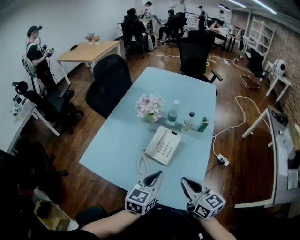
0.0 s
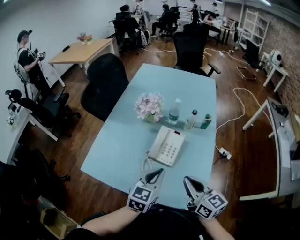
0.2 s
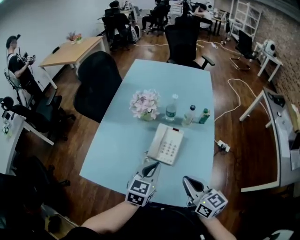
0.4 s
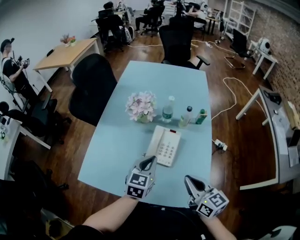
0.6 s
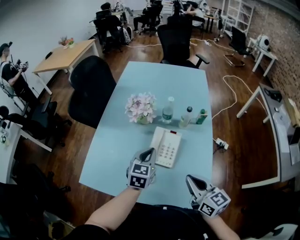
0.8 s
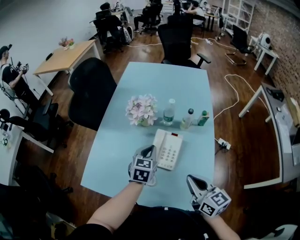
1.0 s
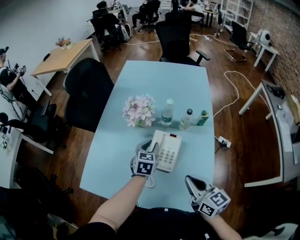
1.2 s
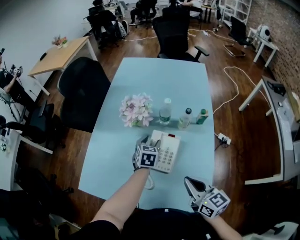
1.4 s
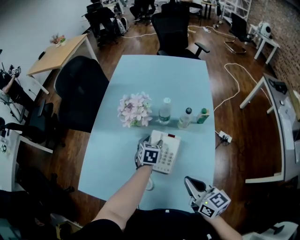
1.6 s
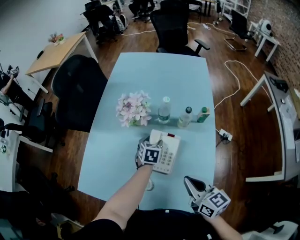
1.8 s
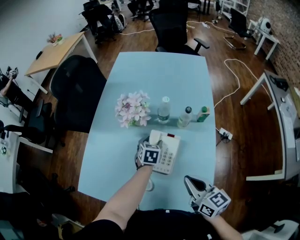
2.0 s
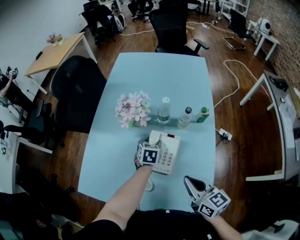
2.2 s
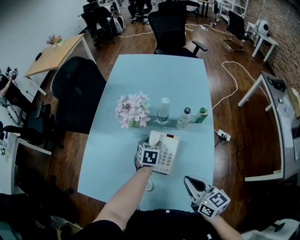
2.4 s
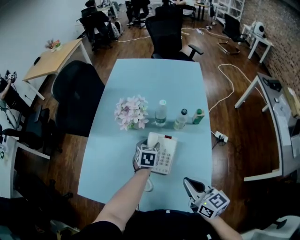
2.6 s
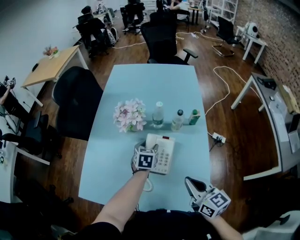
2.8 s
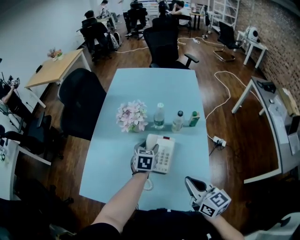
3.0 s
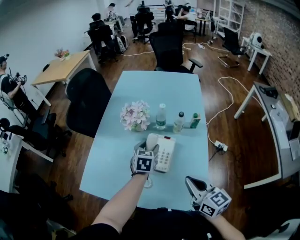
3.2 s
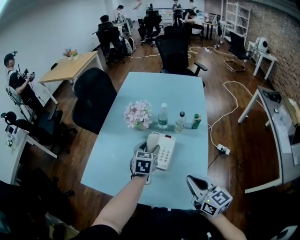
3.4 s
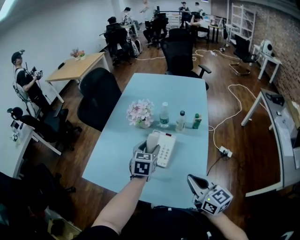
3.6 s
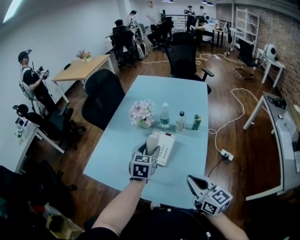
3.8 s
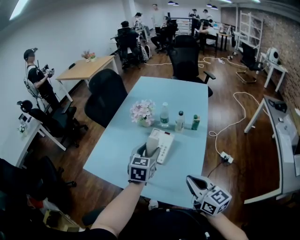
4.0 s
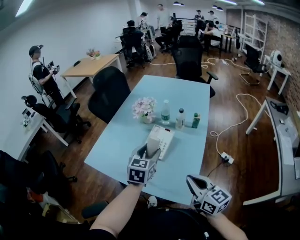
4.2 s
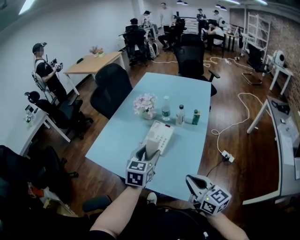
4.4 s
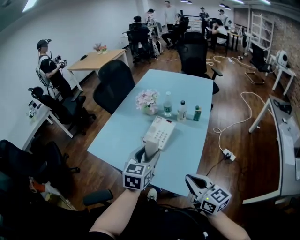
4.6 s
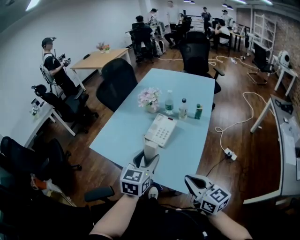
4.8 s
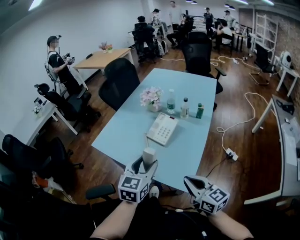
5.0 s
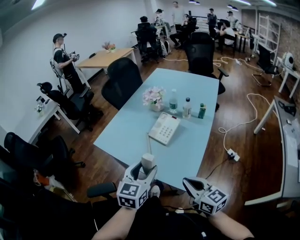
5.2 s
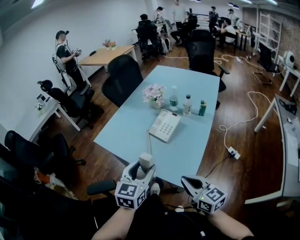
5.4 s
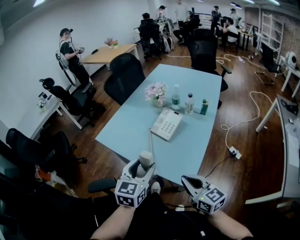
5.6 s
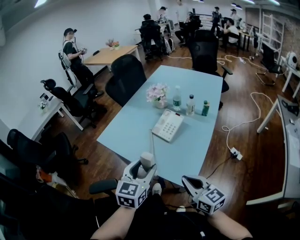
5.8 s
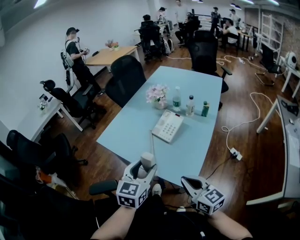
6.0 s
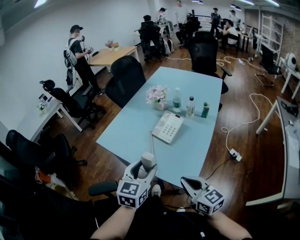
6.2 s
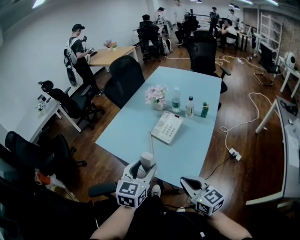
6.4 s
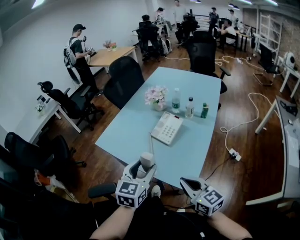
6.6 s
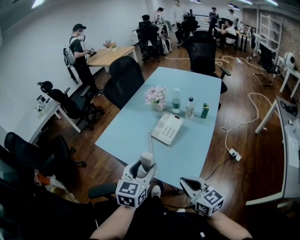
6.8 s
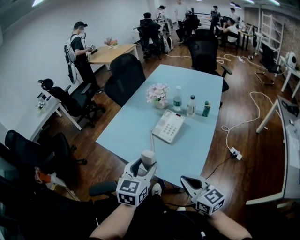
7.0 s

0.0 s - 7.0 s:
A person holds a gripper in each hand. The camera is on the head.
0.0 s - 1.4 s: The left gripper is displaced forward and downward by approximately 30 cm, swivels approximately 20 degrees, and opens its fingers; the right gripper shifts some 10 cm forward.
1.4 s - 2.8 s: The grippers make only small movements.
2.8 s - 4.2 s: The right gripper shifts approximately 15 cm backward and to the right; the left gripper is displaced backward and upward by about 25 cm, and swivels roughly 20 degrees.
4.2 s - 5.6 s: The left gripper shifts some 20 cm backward; the right gripper is displaced backward by approximately 10 cm.
5.6 s - 7.0 s: The grippers stay close to where they were, moving slightly.

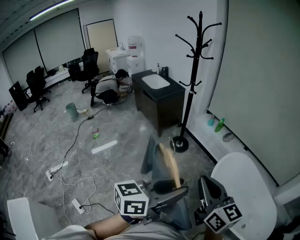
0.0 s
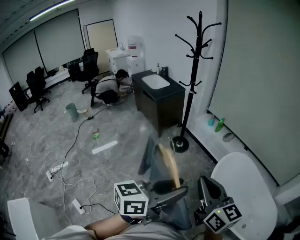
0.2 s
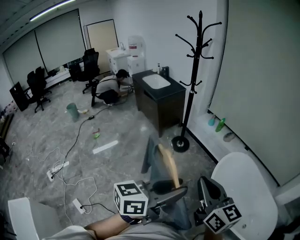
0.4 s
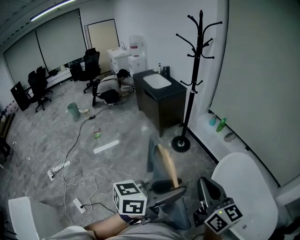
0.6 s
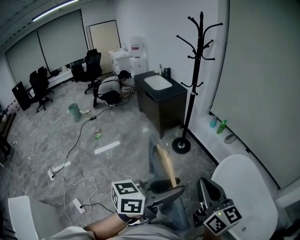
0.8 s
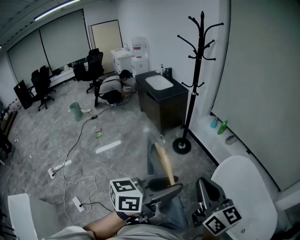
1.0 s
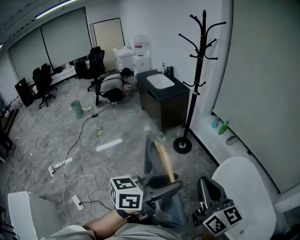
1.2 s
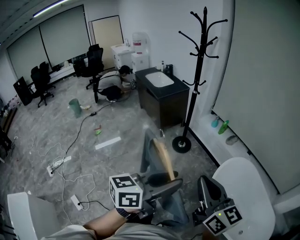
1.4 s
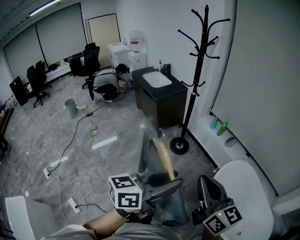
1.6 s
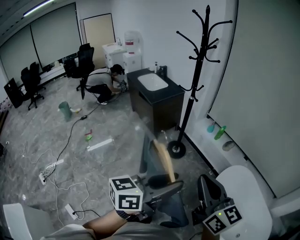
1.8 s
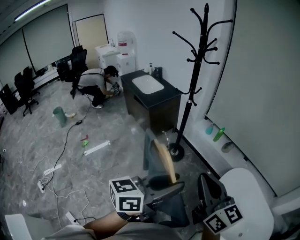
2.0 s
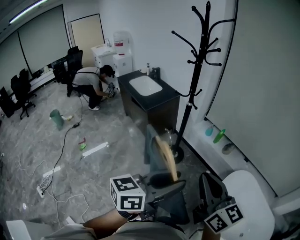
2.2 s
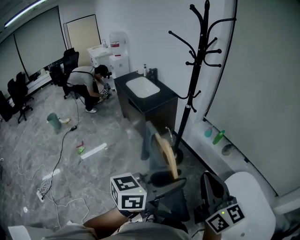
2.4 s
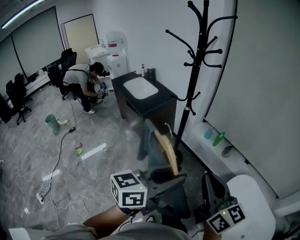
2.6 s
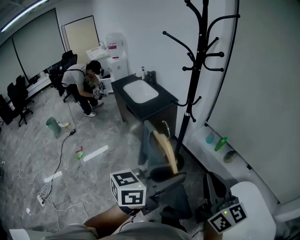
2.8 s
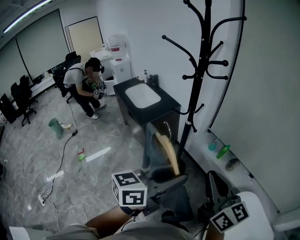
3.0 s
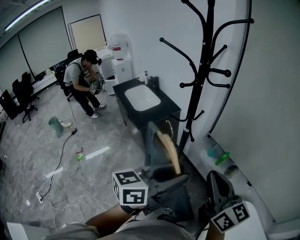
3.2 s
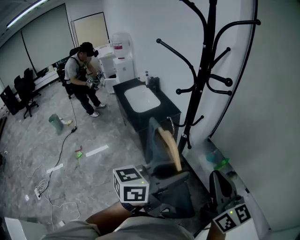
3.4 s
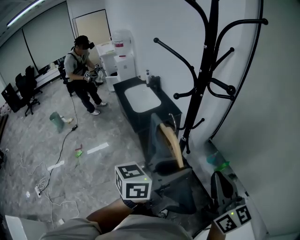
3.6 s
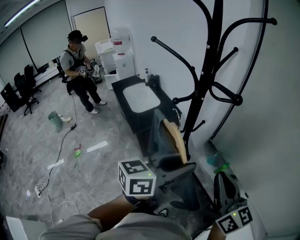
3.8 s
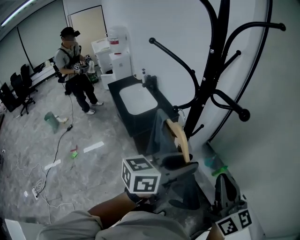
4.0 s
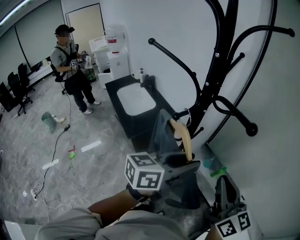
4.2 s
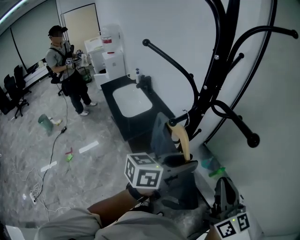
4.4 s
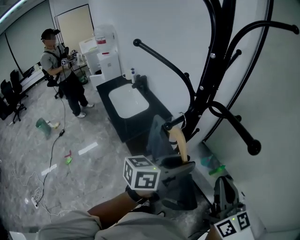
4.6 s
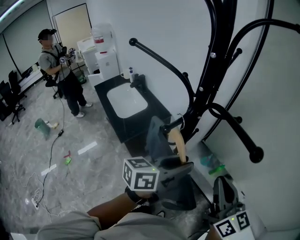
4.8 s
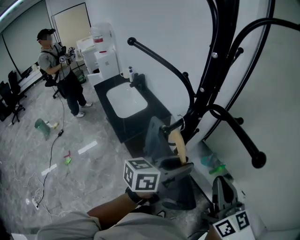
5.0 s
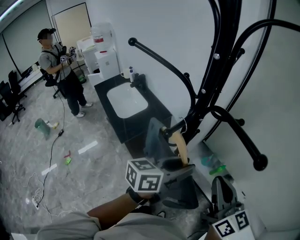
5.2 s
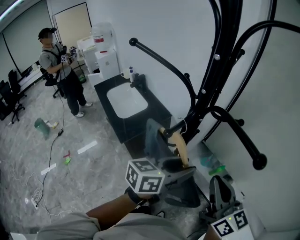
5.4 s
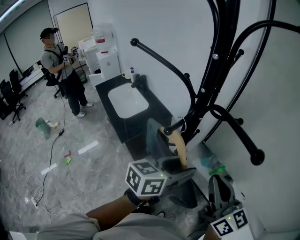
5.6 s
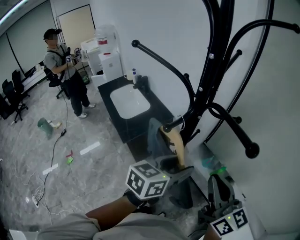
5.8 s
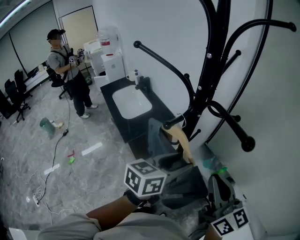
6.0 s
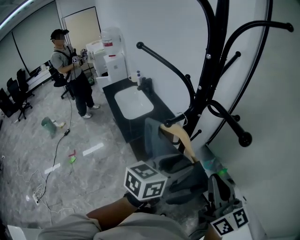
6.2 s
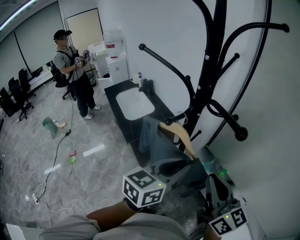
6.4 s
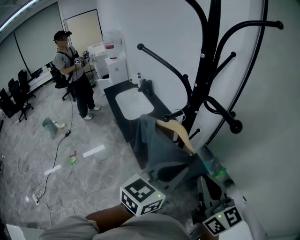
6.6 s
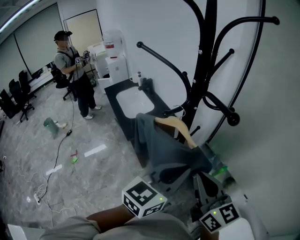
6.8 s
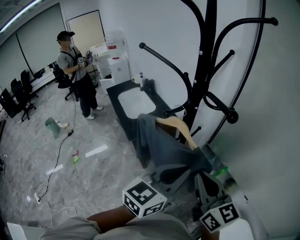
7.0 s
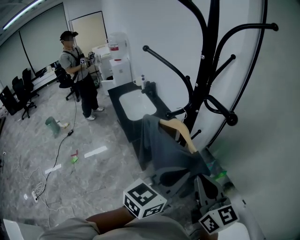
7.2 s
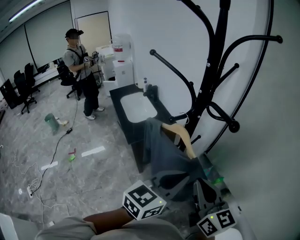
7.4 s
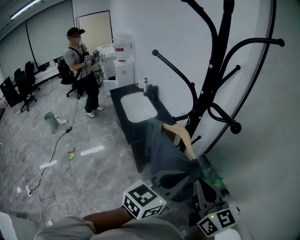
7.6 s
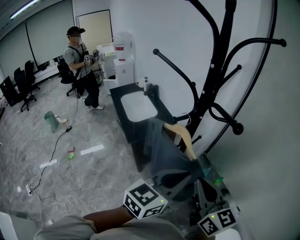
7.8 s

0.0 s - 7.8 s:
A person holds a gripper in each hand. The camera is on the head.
0.0 s - 1.6 s: Both grippers travel together forward, about 10 cm.
1.6 s - 3.2 s: The two grippers travel together, forward, roughly 50 cm.
3.2 s - 4.6 s: Both grippers travel together forward, some 25 cm.
4.6 s - 6.2 s: There are only small adjustments of the grippers.
6.2 s - 7.8 s: The left gripper travels backward by about 5 cm, and closes its fingers.

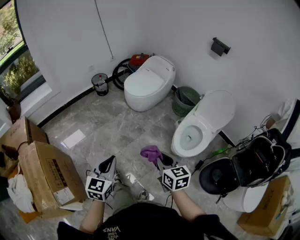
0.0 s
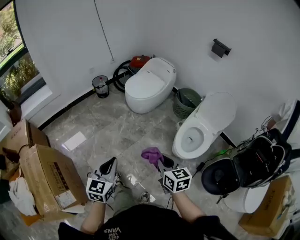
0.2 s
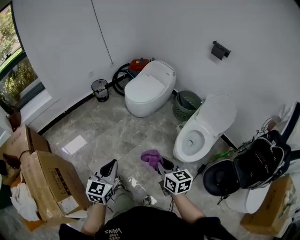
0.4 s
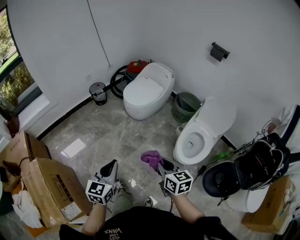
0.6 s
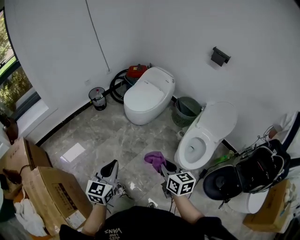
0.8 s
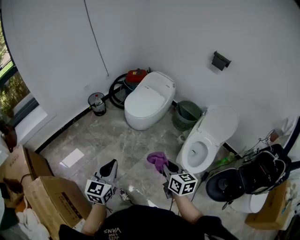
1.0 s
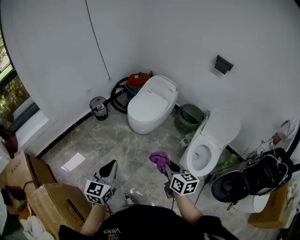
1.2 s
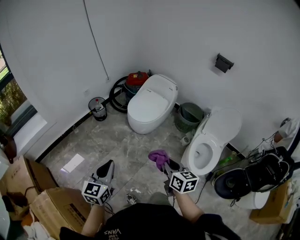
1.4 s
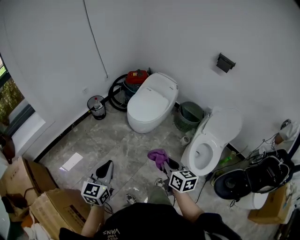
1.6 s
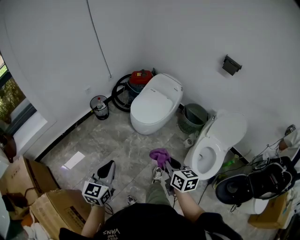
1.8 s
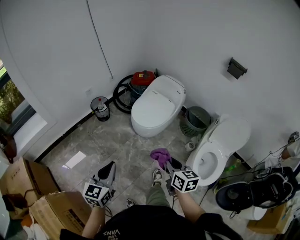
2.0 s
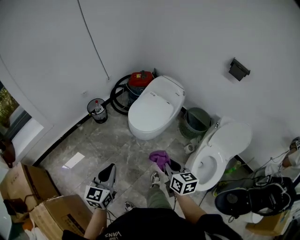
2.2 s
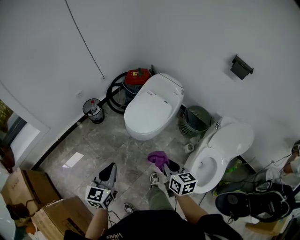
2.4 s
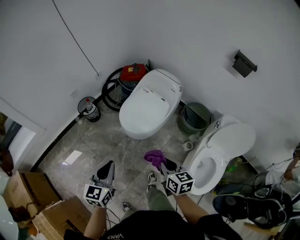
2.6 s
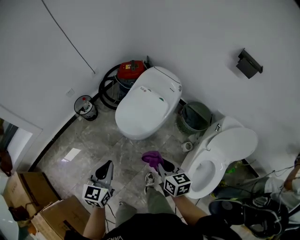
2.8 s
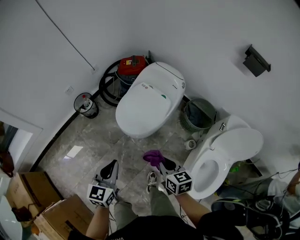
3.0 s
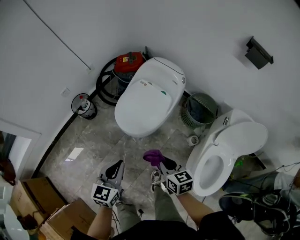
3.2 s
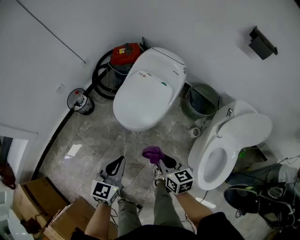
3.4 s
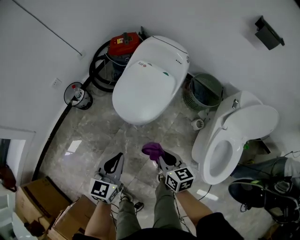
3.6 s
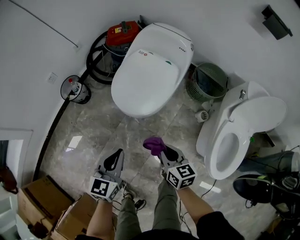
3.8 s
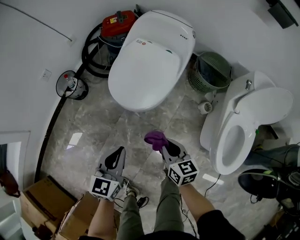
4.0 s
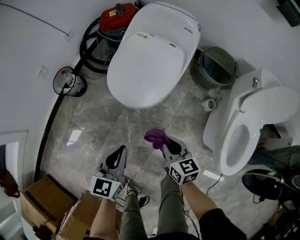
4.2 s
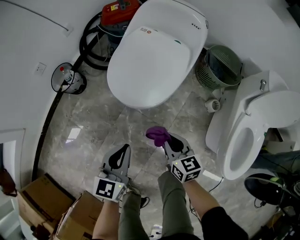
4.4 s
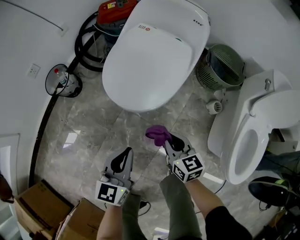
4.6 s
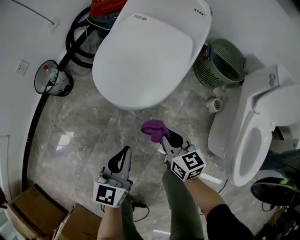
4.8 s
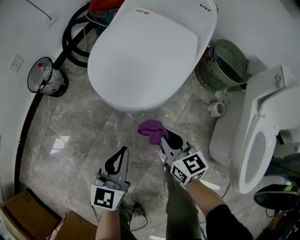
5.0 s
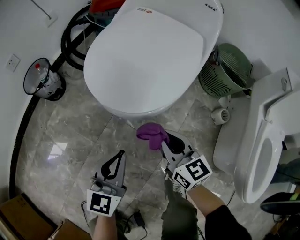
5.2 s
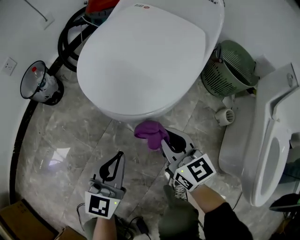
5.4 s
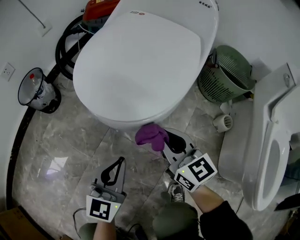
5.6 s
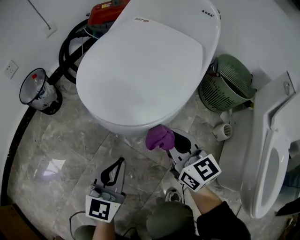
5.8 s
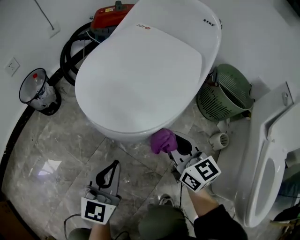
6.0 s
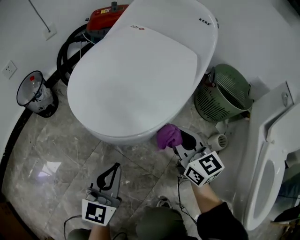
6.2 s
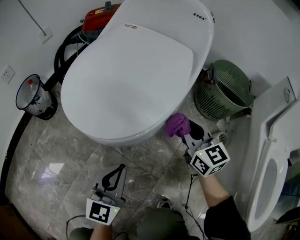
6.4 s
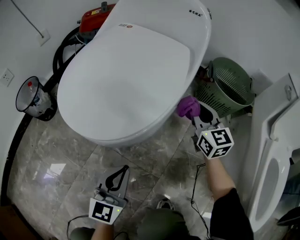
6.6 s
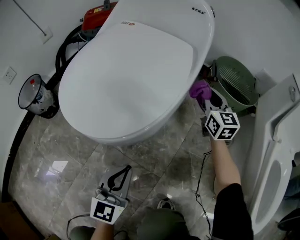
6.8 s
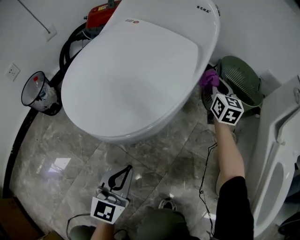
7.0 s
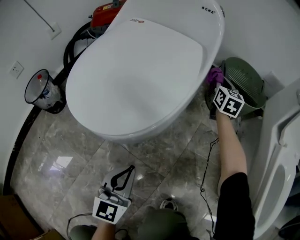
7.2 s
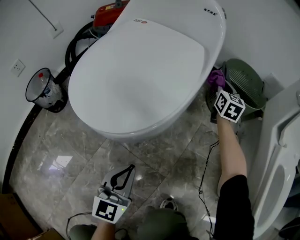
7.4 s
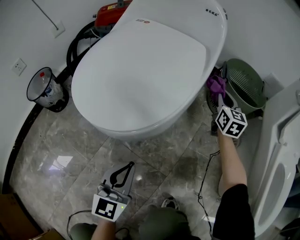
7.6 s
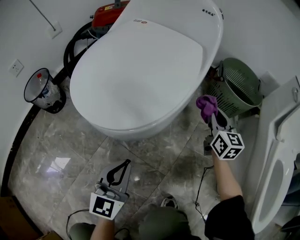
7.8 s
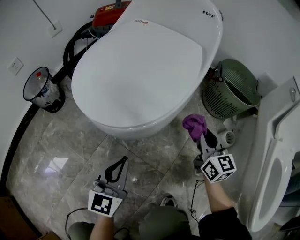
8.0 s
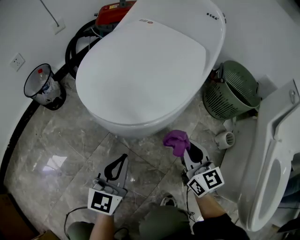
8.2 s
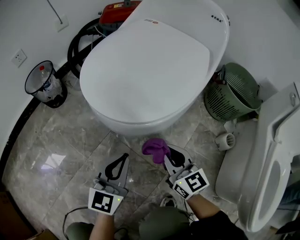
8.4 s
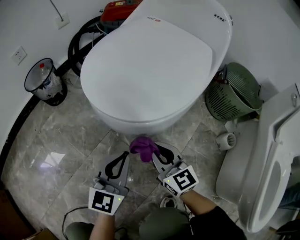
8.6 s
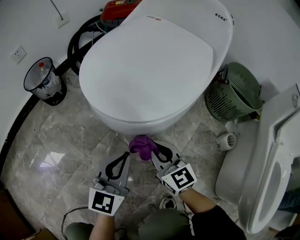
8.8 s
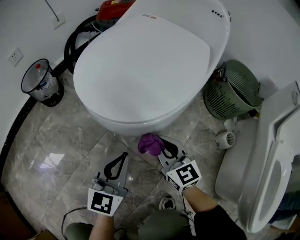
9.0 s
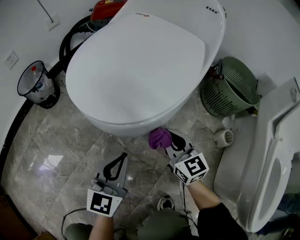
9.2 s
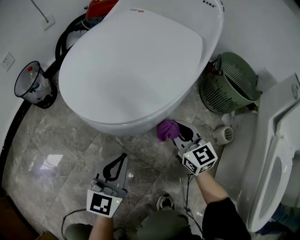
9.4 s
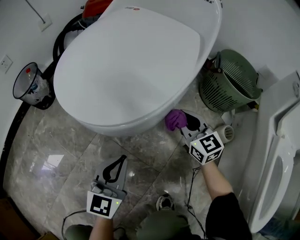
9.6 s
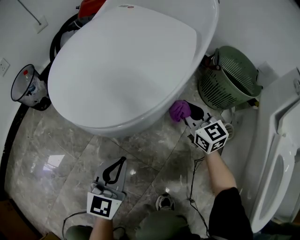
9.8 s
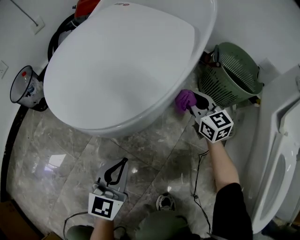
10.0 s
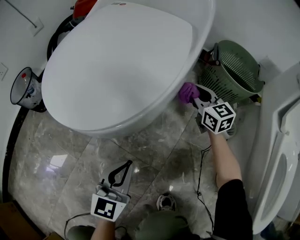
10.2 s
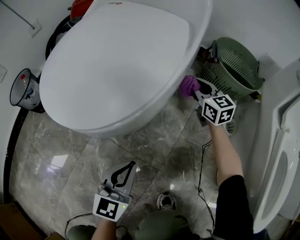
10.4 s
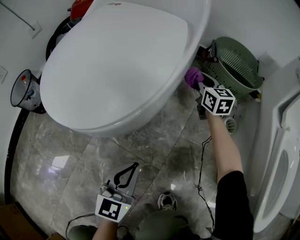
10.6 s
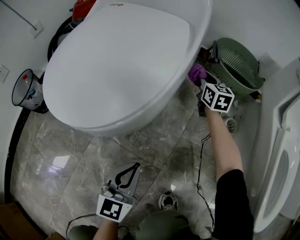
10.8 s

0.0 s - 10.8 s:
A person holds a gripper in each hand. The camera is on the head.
0.0 s - 1.6 s: The grippers both shift forward and to the left by approximately 30 cm.
1.6 s - 3.0 s: The right gripper heads forward and downward, covering some 35 cm, while the left gripper travels forward and to the right by approximately 35 cm.
3.0 s - 4.6 s: The grippers both shift downward by about 30 cm.
4.6 s - 6.2 s: The left gripper goes roughly 20 cm downward; the right gripper heads downward, forward and to the right, covering about 20 cm, and changes its angle by some 20 degrees.
6.2 s - 7.8 s: The right gripper goes some 20 cm to the right and forward, and turns by about 20 degrees.
7.8 s - 9.2 s: The right gripper goes some 20 cm to the left and backward, and rotates approximately 30 degrees.
9.2 s - 10.8 s: The left gripper shifts some 10 cm to the right. The right gripper heads forward and to the right, covering roughly 30 cm, and swivels about 30 degrees.
